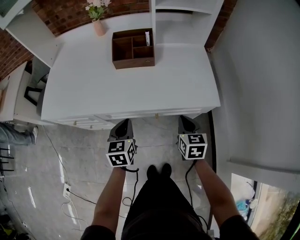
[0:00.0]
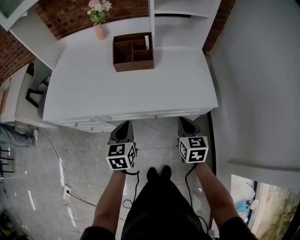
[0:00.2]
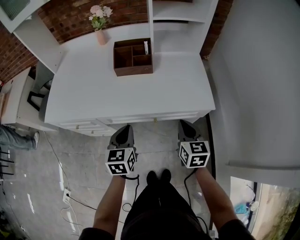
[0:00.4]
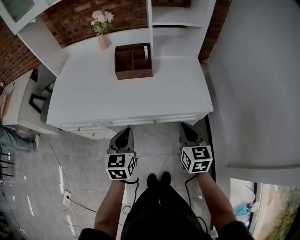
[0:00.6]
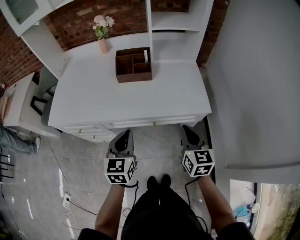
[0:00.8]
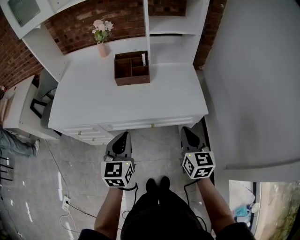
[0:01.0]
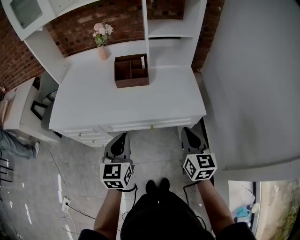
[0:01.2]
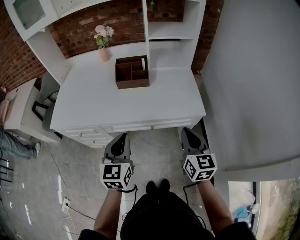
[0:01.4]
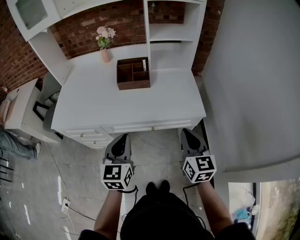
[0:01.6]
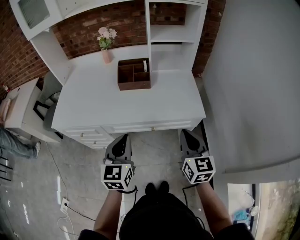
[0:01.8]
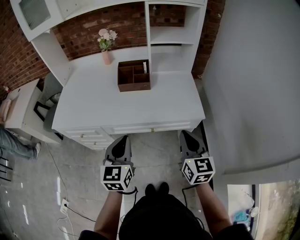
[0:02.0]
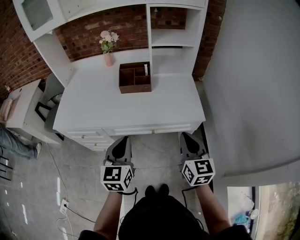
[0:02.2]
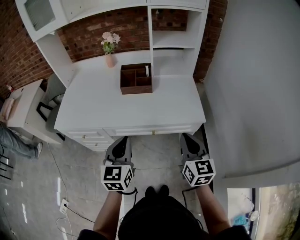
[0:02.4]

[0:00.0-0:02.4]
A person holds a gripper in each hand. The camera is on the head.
0:00.0 to 0:01.2: Both grippers travel together upward and backward, some 15 cm. The right gripper turns by approximately 20 degrees.
0:01.2 to 0:02.4: There are only small adjustments of the grippers.

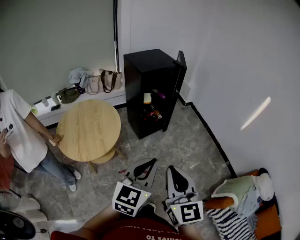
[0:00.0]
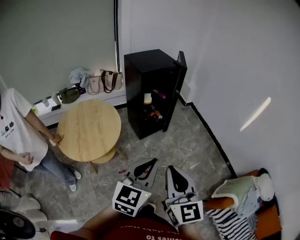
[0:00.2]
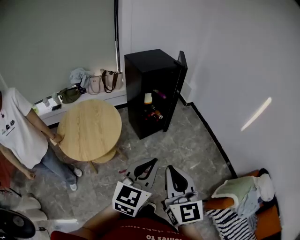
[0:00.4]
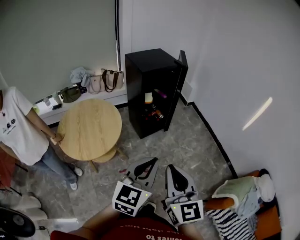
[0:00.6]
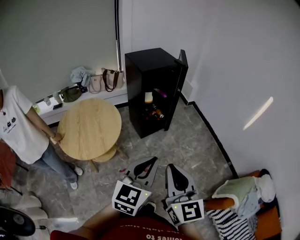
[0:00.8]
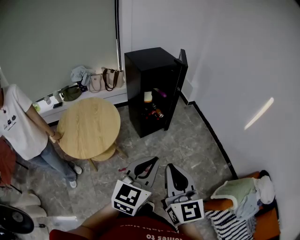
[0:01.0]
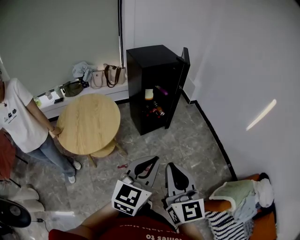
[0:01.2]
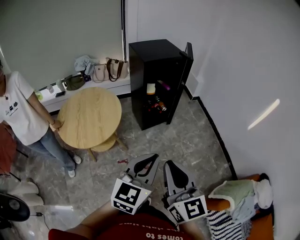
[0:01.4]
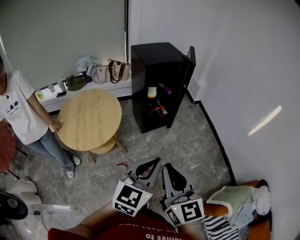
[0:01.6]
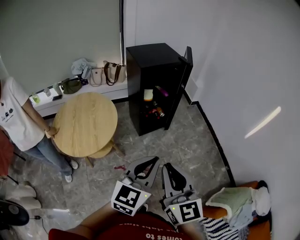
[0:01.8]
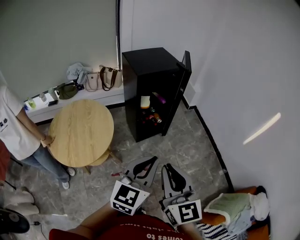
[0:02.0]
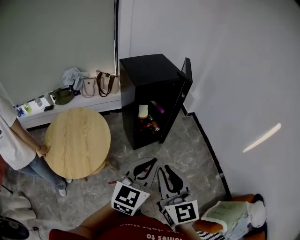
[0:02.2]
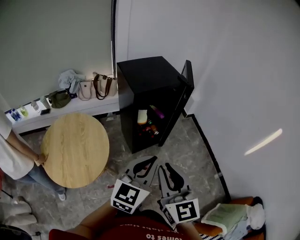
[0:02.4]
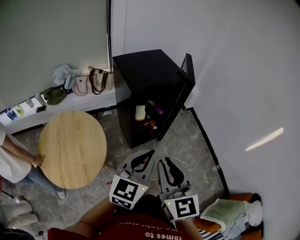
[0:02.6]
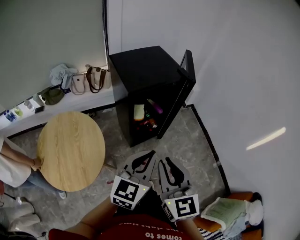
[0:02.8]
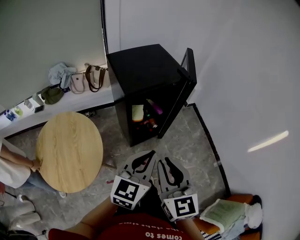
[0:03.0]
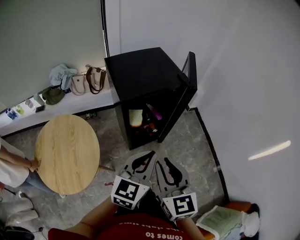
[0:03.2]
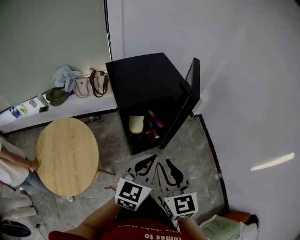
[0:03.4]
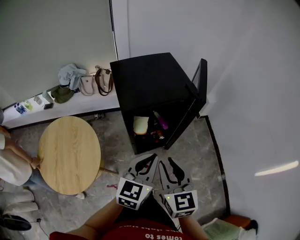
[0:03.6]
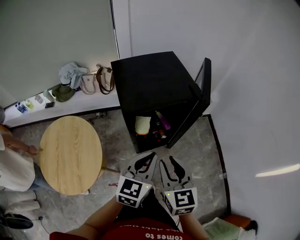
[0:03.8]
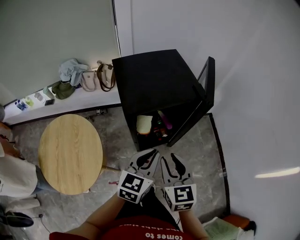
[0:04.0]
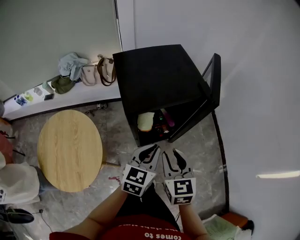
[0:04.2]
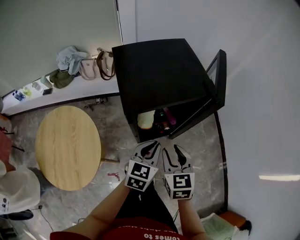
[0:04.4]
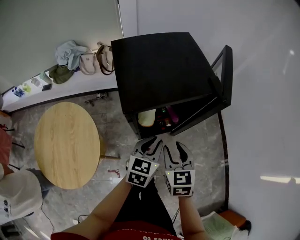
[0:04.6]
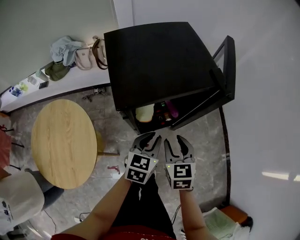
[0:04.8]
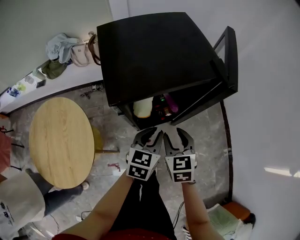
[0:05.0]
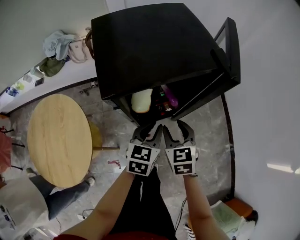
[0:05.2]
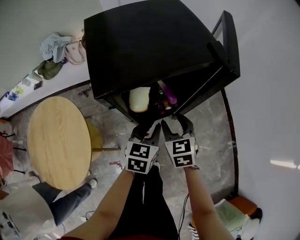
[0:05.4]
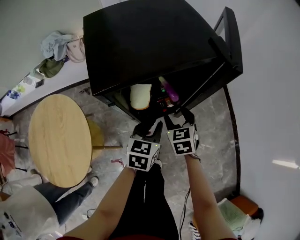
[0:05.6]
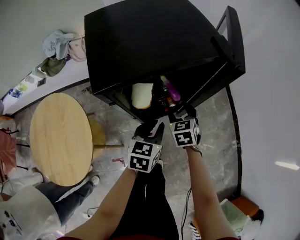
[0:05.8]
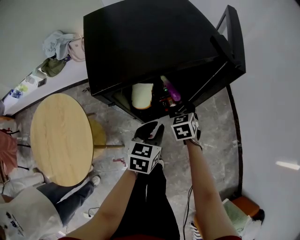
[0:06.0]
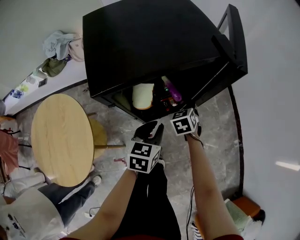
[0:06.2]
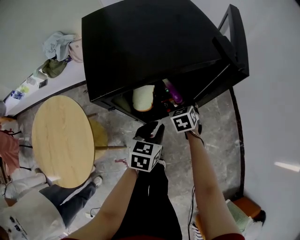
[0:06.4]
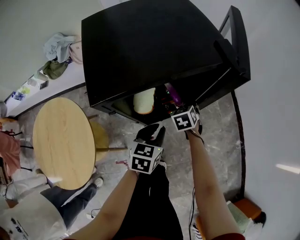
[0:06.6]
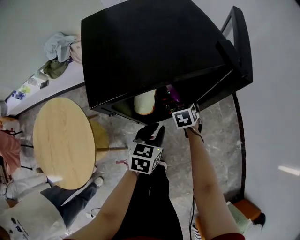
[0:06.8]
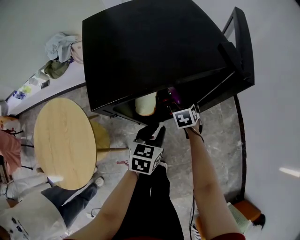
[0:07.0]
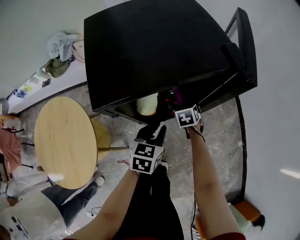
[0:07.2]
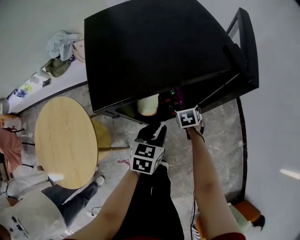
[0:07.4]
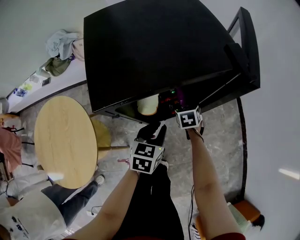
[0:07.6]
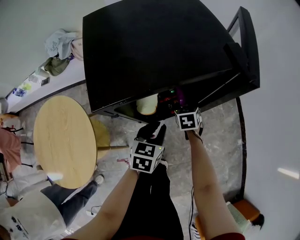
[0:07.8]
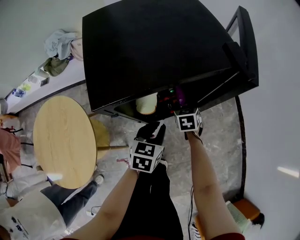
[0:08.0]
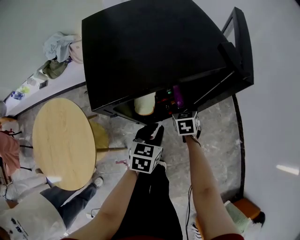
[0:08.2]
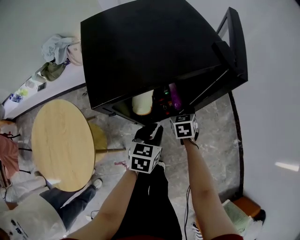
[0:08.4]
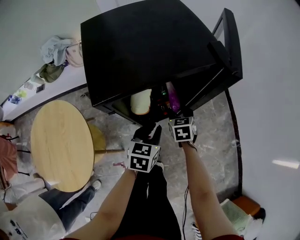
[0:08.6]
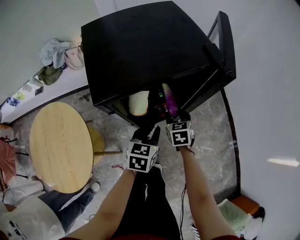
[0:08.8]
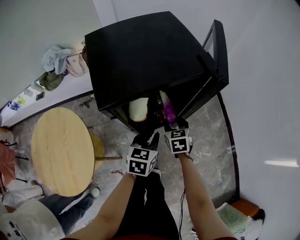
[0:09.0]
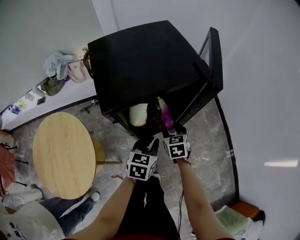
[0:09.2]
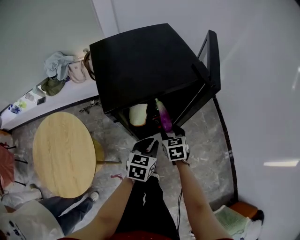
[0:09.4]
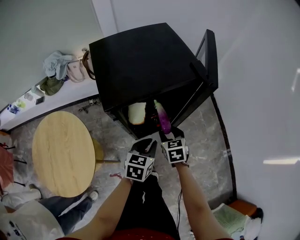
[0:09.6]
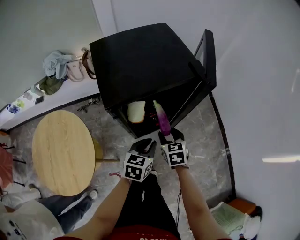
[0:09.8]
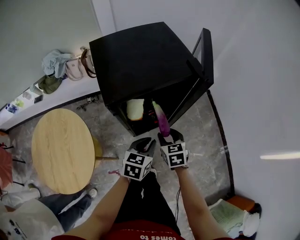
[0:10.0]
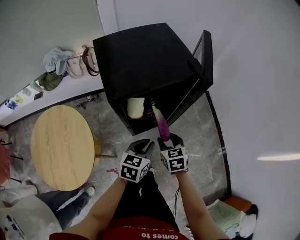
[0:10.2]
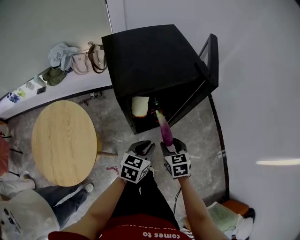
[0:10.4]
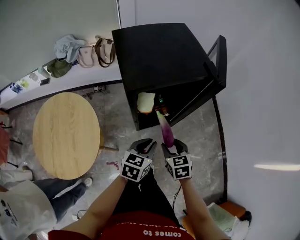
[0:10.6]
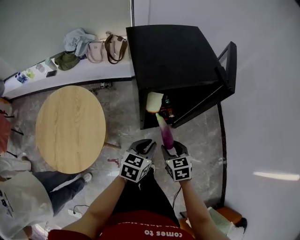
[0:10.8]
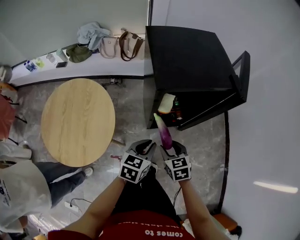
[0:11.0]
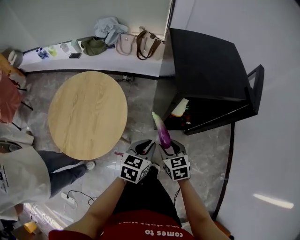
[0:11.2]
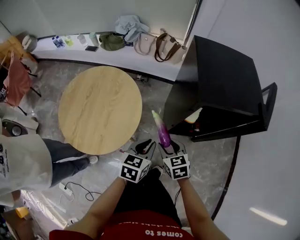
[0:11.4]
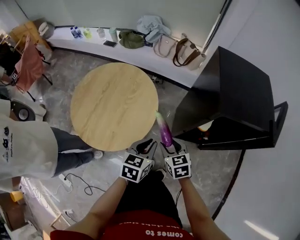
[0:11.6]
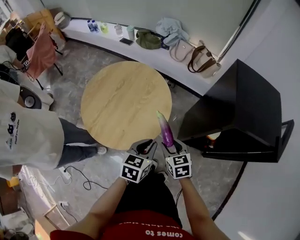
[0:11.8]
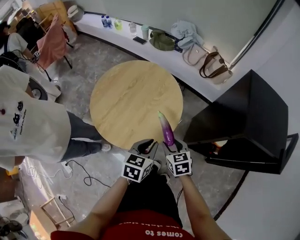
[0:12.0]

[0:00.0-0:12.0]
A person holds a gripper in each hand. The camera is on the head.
0:00.0 to 0:01.6: The left gripper shifts approximately 5 cm to the right.
0:01.6 to 0:03.0: The two grippers go some 35 cm forward.
0:03.0 to 0:04.4: Both grippers move forward and downward, about 25 cm. The right gripper rotates approximately 20 degrees, while the left gripper changes its angle by roughly 20 degrees.
0:04.4 to 0:06.0: The right gripper moves downward and forward, approximately 30 cm, and opens up. The left gripper moves downward, approximately 15 cm.
0:06.0 to 0:07.6: The right gripper goes about 10 cm downward and forward.
0:07.6 to 0:09.0: The right gripper shifts approximately 10 cm upward and backward.
0:09.0 to 0:10.4: The grippers both shift backward and upward by approximately 15 cm.
0:10.4 to 0:12.0: The right gripper ends up about 40 cm from where it was, and changes its angle by roughly 50 degrees, while the left gripper shifts by roughly 35 cm, and swivels some 50 degrees.

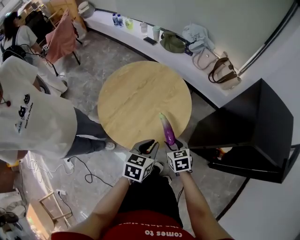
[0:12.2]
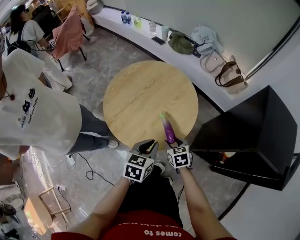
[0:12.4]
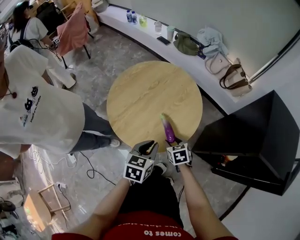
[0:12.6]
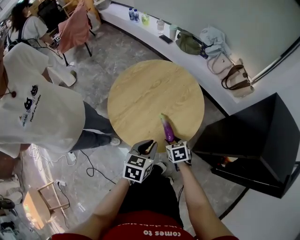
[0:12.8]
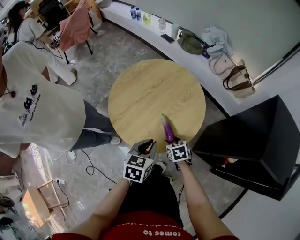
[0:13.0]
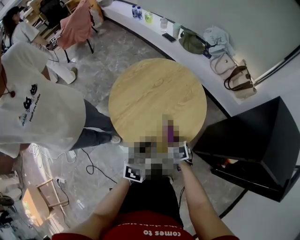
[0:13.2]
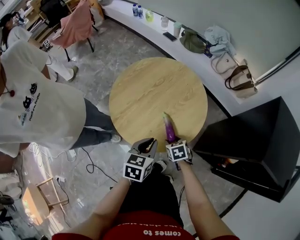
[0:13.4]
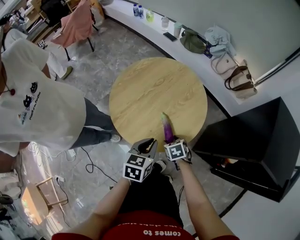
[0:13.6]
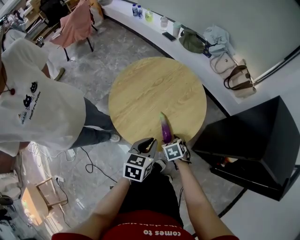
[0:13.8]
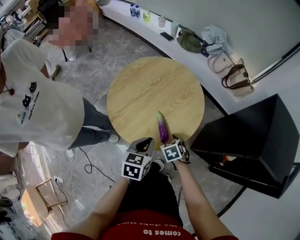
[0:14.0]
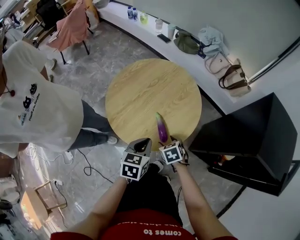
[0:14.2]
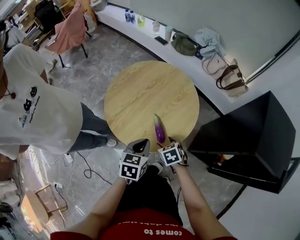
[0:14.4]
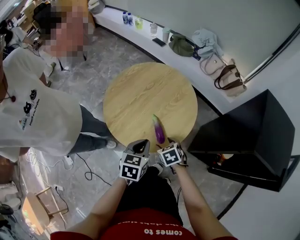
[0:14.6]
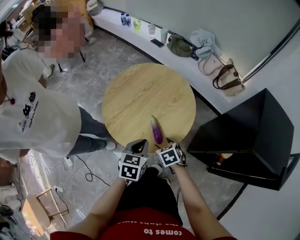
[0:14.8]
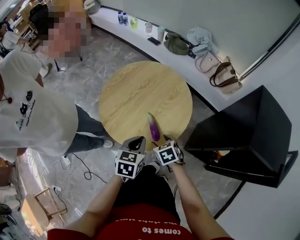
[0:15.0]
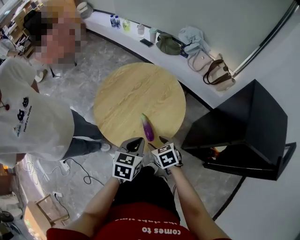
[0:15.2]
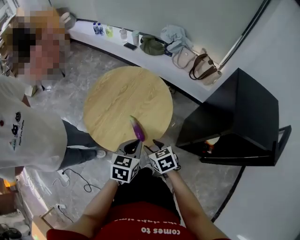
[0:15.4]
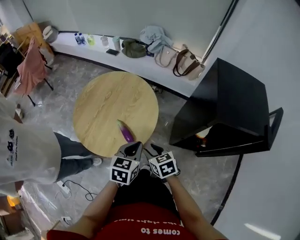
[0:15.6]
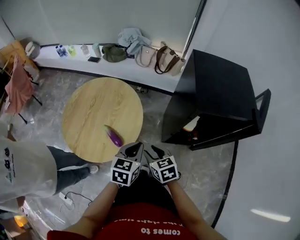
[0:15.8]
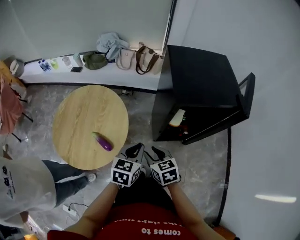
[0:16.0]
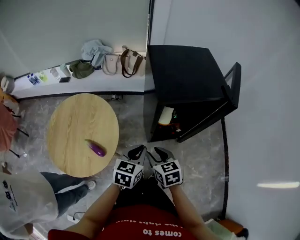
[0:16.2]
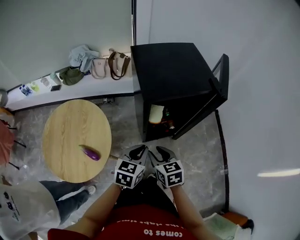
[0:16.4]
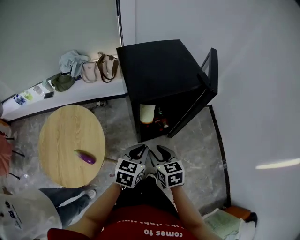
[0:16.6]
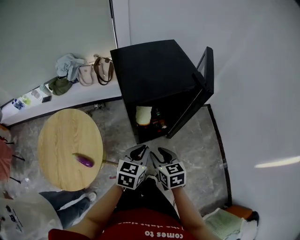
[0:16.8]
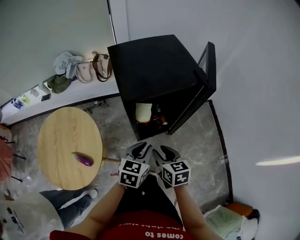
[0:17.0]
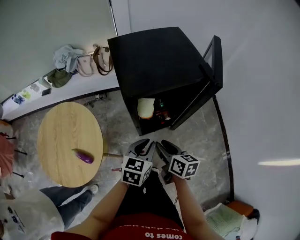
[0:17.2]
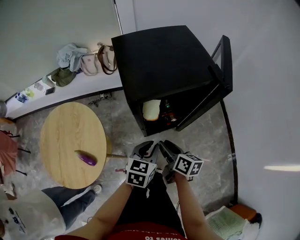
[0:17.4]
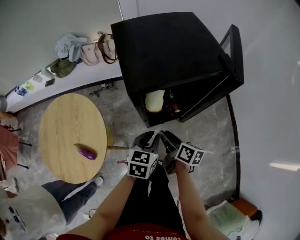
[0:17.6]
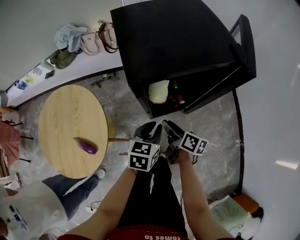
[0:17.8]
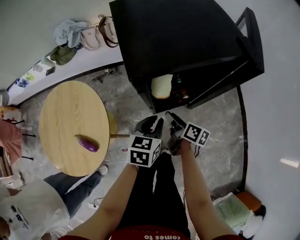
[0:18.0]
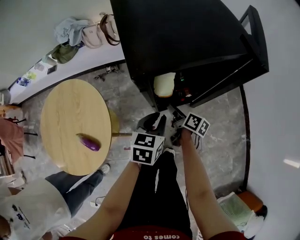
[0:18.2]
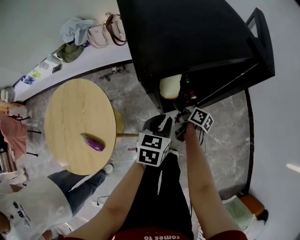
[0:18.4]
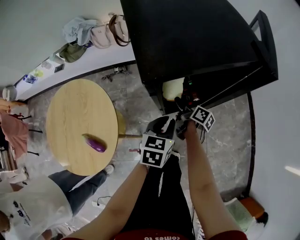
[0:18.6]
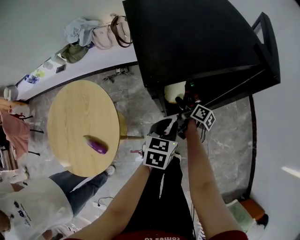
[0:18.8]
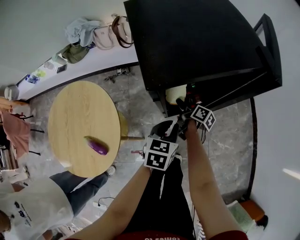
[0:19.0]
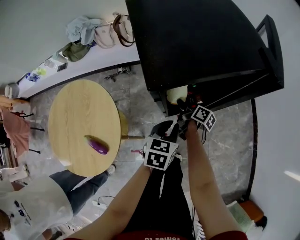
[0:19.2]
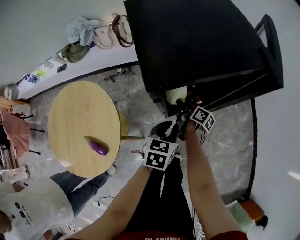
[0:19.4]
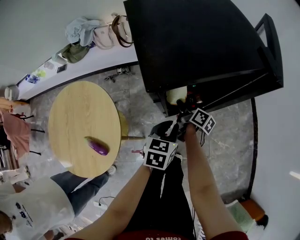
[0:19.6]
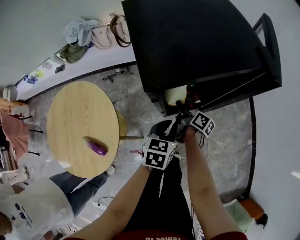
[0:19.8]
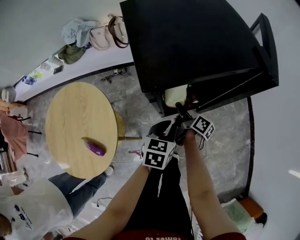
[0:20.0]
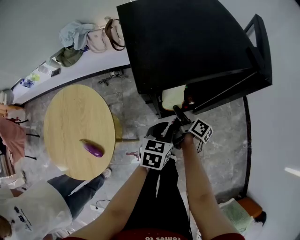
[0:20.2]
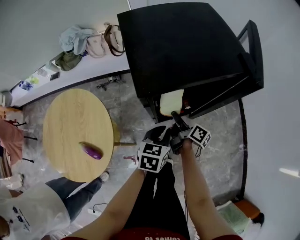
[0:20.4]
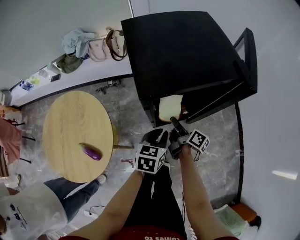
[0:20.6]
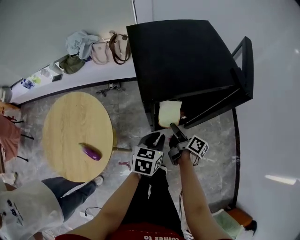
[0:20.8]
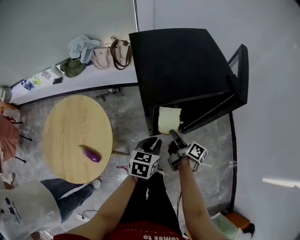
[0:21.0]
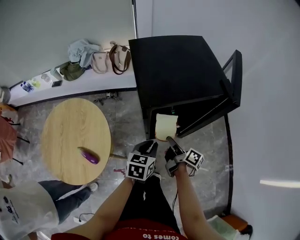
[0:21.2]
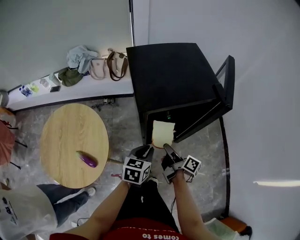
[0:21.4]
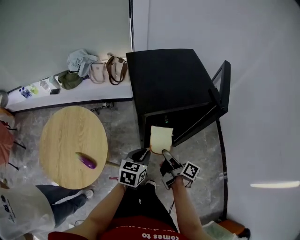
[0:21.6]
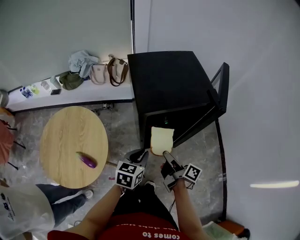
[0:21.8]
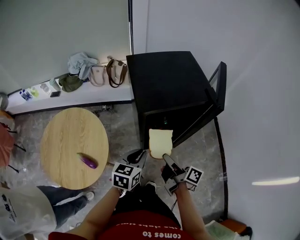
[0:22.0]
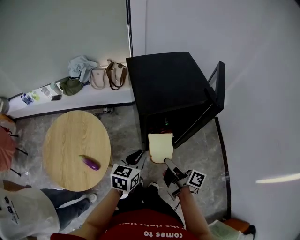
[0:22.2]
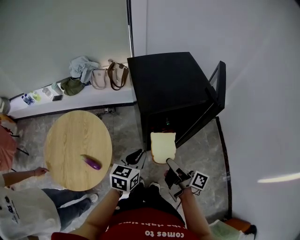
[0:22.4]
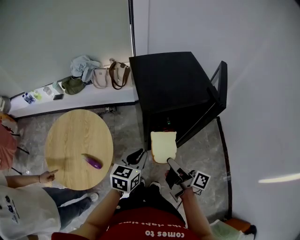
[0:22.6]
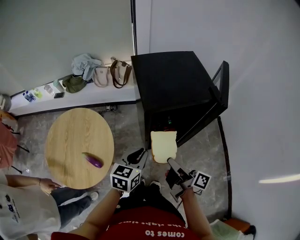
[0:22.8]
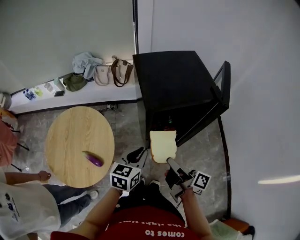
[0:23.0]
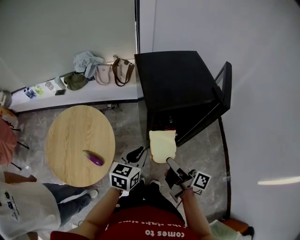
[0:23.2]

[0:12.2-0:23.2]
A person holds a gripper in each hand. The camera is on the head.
0:12.2 to 0:13.8: The left gripper heads to the left, covering some 5 cm; the right gripper shifts roughly 10 cm downward and to the left, and rotates about 20 degrees.
0:13.8 to 0:15.4: The left gripper travels to the right by roughly 5 cm, while the right gripper moves upward, some 10 cm, and changes its angle by some 20 degrees.
0:15.4 to 0:17.0: The right gripper moves some 35 cm, and changes its angle by roughly 60 degrees; the left gripper shifts by approximately 35 cm, and swivels approximately 50 degrees.
0:17.0 to 0:18.4: The left gripper goes roughly 15 cm downward and forward, while the right gripper is displaced downward and forward by some 25 cm, and rolls clockwise, seen from behind, by approximately 50 degrees.
0:18.4 to 0:20.0: The right gripper closes up.
0:20.0 to 0:21.6: The right gripper moves upward and backward, about 20 cm. Meanwhile the left gripper travels upward and backward by roughly 10 cm.
0:21.6 to 0:23.2: The left gripper goes some 10 cm upward and to the left. The right gripper is displaced upward and backward by approximately 10 cm.
